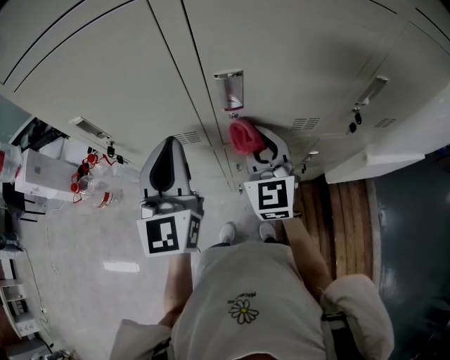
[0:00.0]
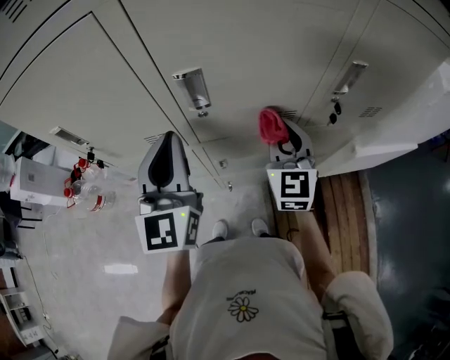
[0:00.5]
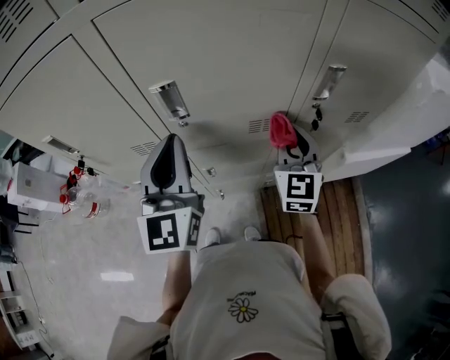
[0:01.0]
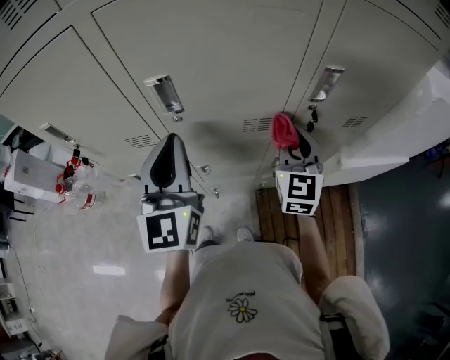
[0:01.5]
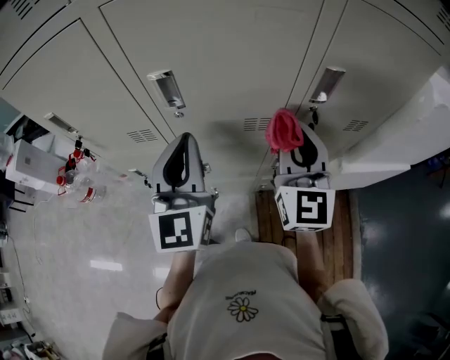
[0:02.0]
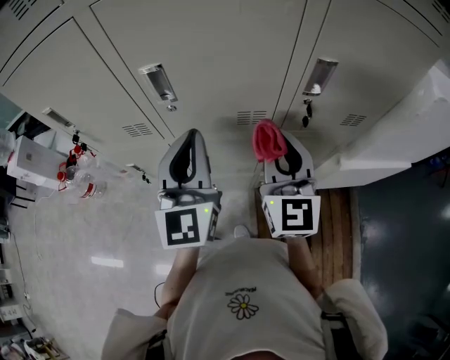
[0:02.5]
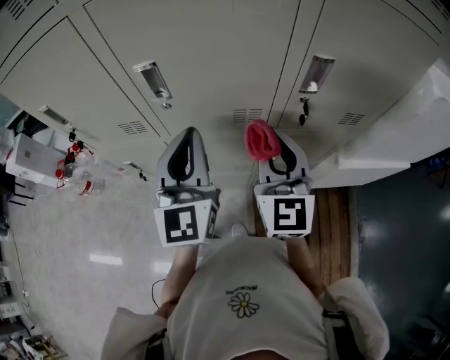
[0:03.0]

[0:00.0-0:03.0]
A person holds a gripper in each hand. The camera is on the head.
0:00.0 to 0:01.5: The left gripper goes approximately 10 cm to the right, while the right gripper moves to the right, about 20 cm.
0:01.5 to 0:03.0: The right gripper heads backward and upward, covering about 10 cm. Meanwhile the left gripper heads to the right, covering some 5 cm.

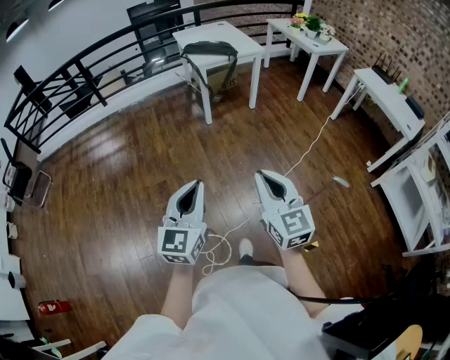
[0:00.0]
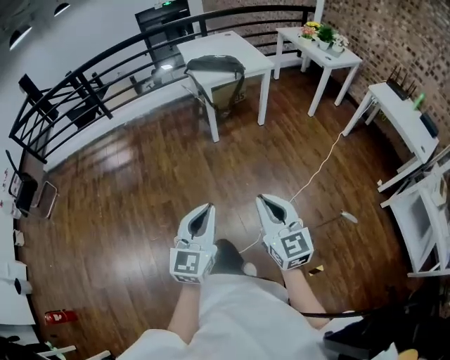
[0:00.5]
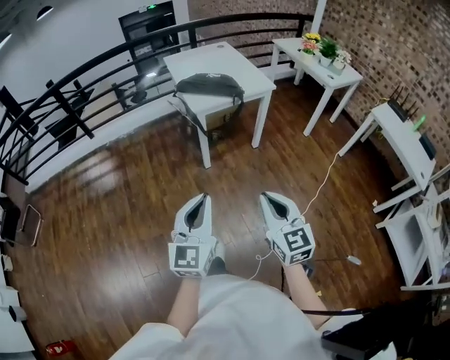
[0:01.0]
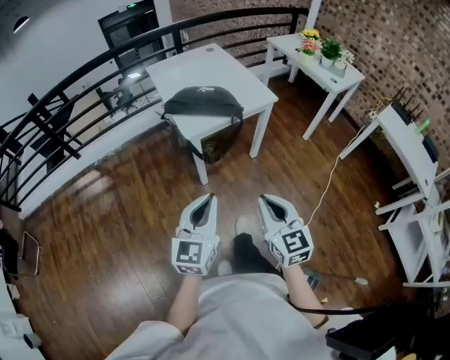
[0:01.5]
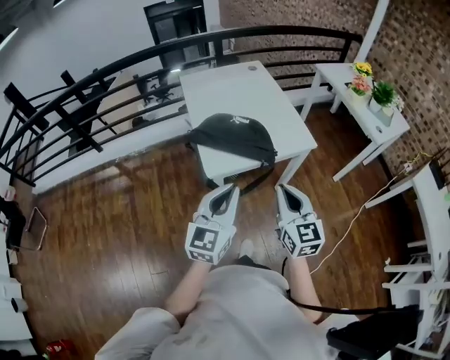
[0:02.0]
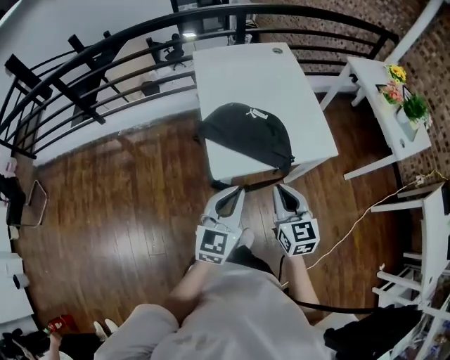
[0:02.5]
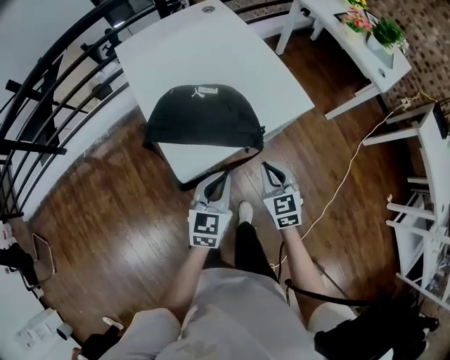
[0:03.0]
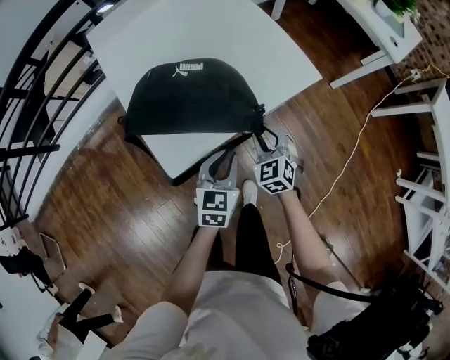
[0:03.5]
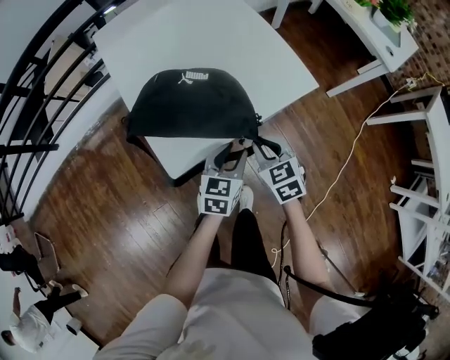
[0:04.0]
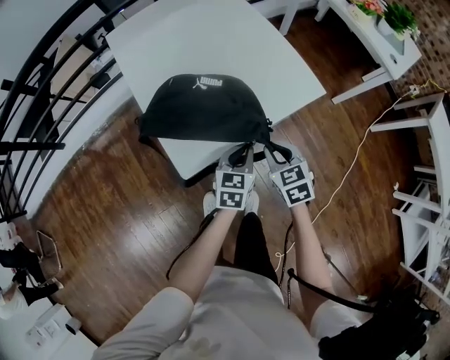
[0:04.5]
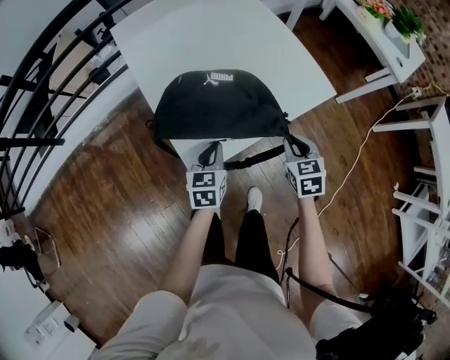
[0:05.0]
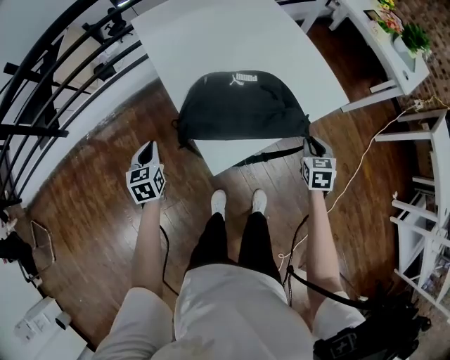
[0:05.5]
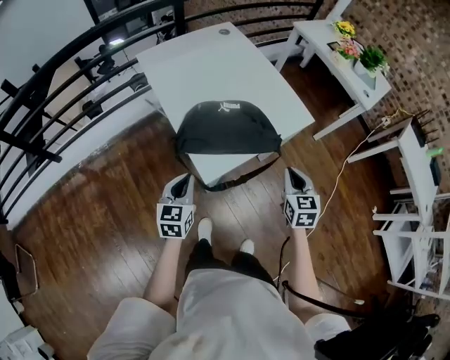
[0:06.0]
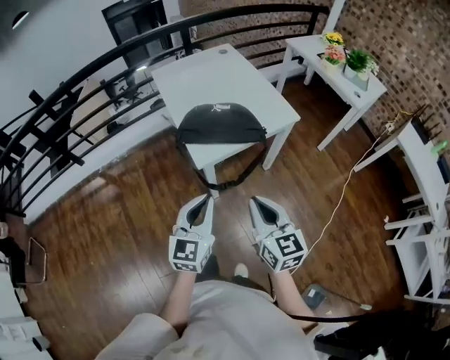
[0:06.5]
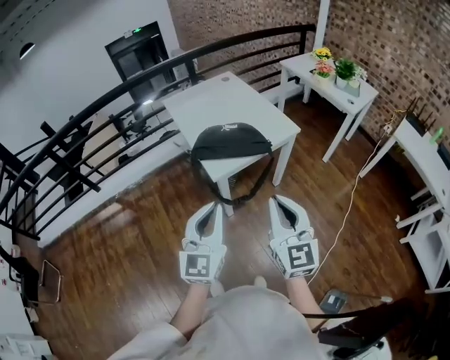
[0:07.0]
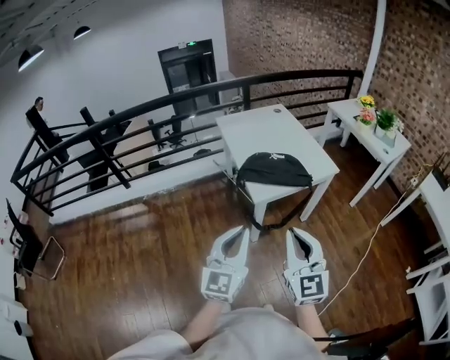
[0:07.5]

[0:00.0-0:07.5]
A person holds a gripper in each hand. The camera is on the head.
0:00.0 to 0:02.0: The two grippers travel together, forward, about 90 cm.
0:02.0 to 0:04.0: The grippers both shift downward and forward by some 35 cm. The right gripper points its fingers about 30 degrees further downward. The left gripper changes its angle by some 30 degrees, and opens.
0:04.0 to 0:05.5: The left gripper moves to the left, some 40 cm, turns by some 30 degrees, and closes up; the right gripper goes approximately 5 cm to the right, and swivels about 30 degrees.
0:05.5 to 0:07.5: The left gripper shifts roughly 60 cm upward and backward, and angles its fingers upward, by about 40 degrees. Meanwhile the right gripper is displaced upward, backward and to the left by roughly 60 cm, and angles its fingers upward, by roughly 50 degrees.

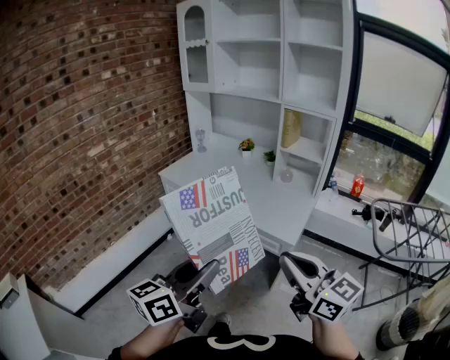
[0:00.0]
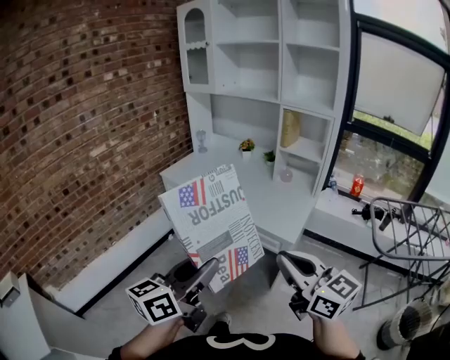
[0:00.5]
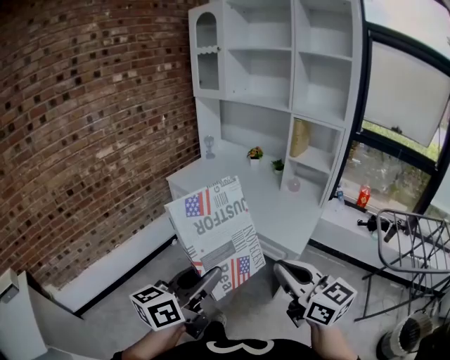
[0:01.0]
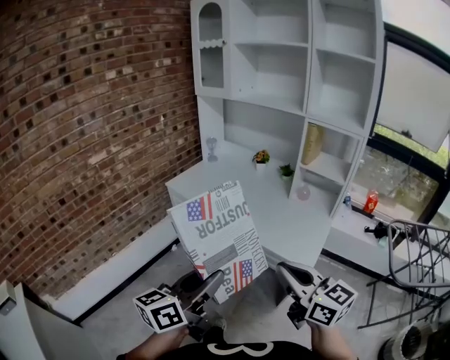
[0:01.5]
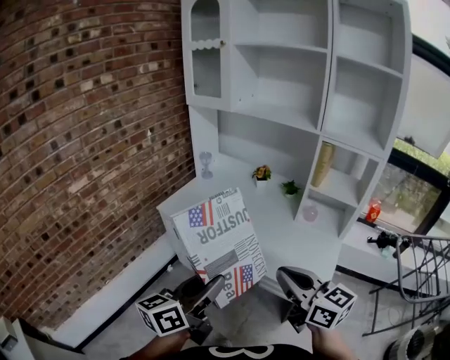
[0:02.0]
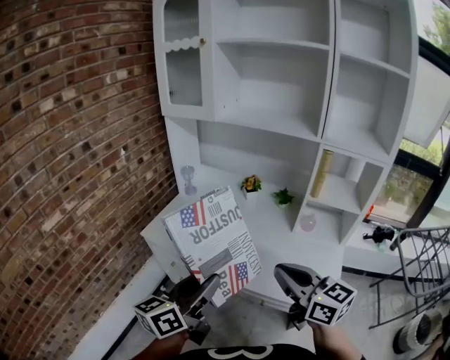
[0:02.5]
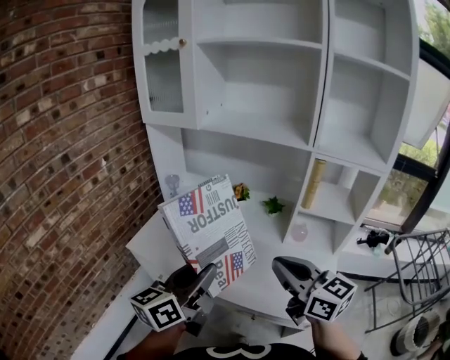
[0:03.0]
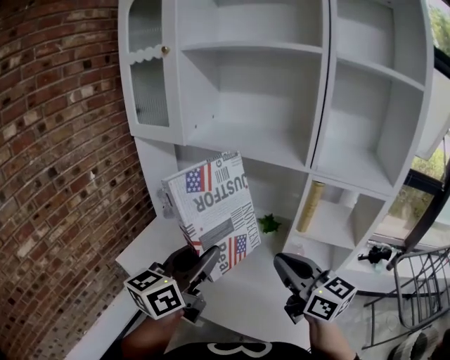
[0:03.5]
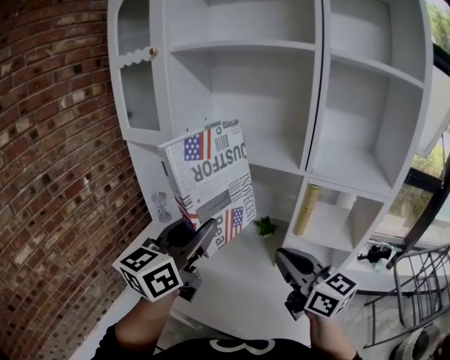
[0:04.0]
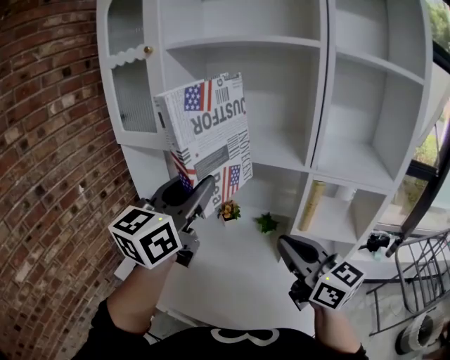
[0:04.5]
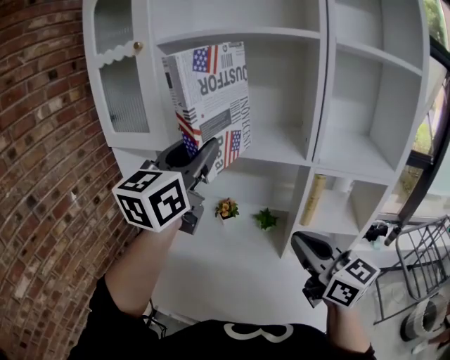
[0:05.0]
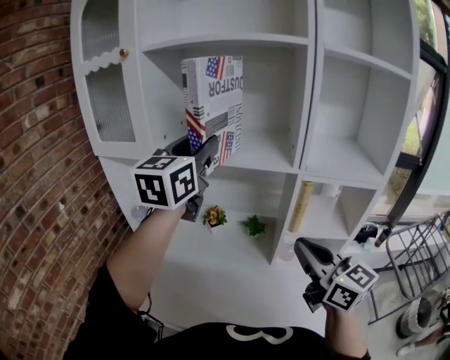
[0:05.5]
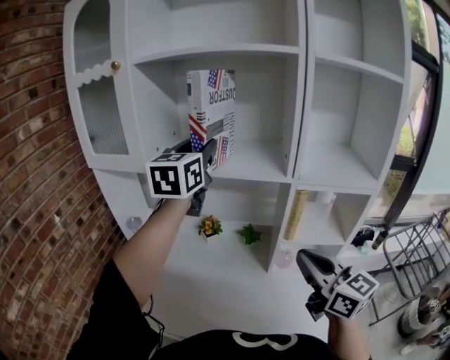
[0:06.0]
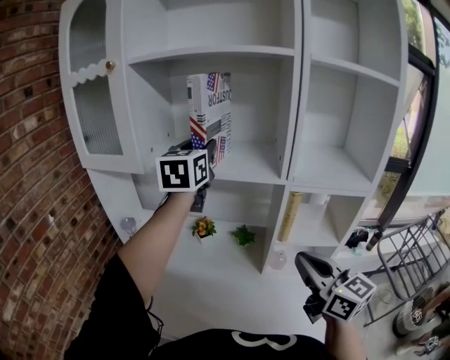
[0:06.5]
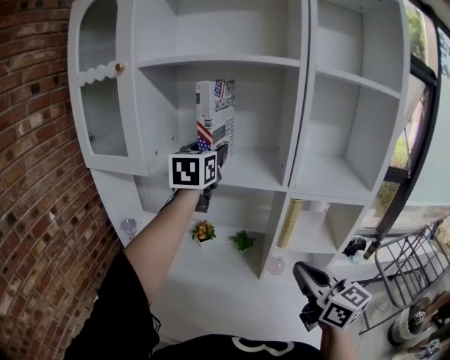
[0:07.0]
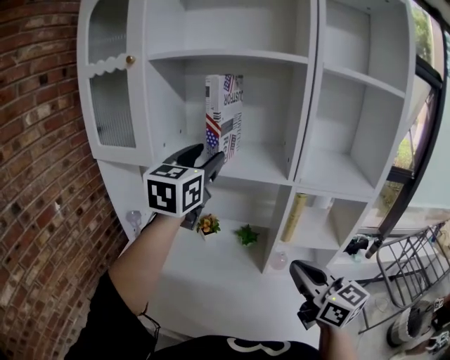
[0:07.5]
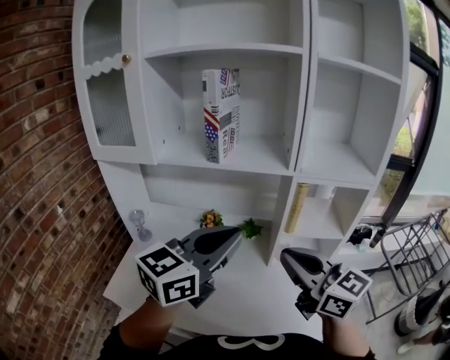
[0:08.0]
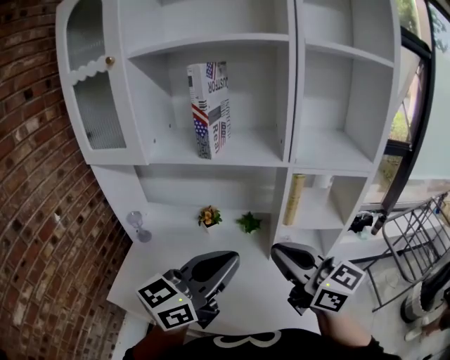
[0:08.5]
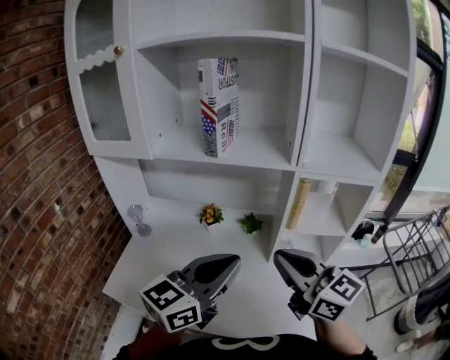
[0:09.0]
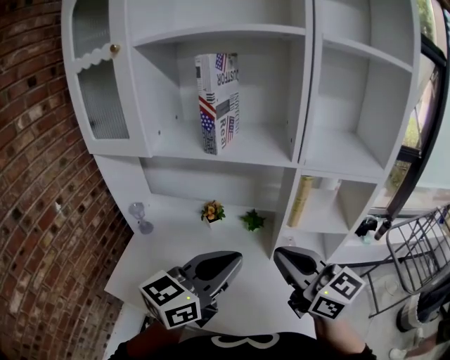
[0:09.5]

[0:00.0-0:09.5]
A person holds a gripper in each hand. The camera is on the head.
0:00.0 to 0:02.0: Both grippers move forward, some 25 cm.
0:02.0 to 0:04.0: The grippers both shift forward by some 35 cm. The left gripper swivels roughly 20 degrees.
0:04.0 to 0:05.5: The left gripper travels forward and upward by approximately 20 cm.
0:05.5 to 0:07.5: The left gripper reaches some 10 cm forward, then returns.
0:07.5 to 0:09.5: The left gripper goes some 25 cm backward and downward, turns by roughly 30 degrees, and closes up, while the right gripper goes about 5 cm to the left.

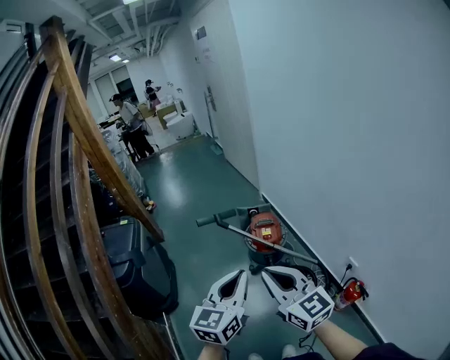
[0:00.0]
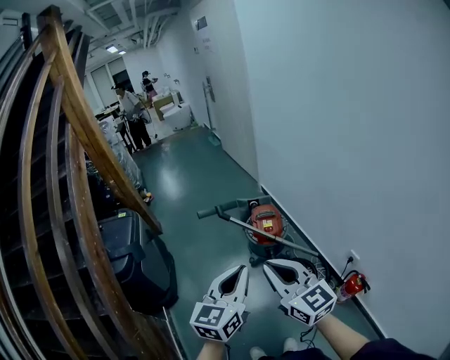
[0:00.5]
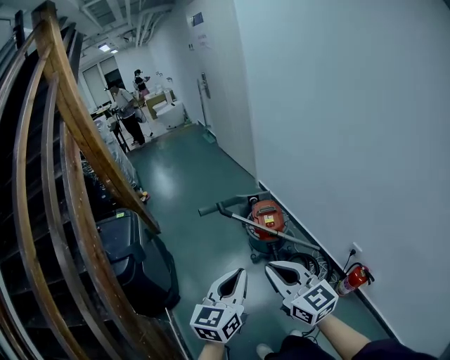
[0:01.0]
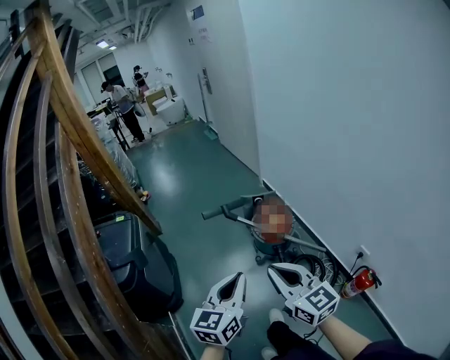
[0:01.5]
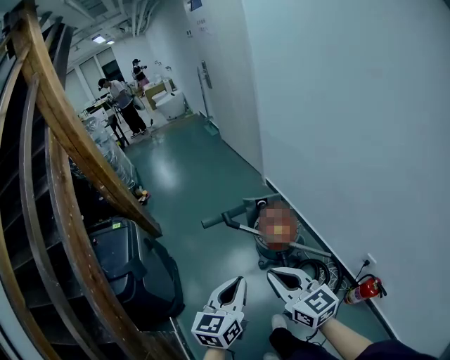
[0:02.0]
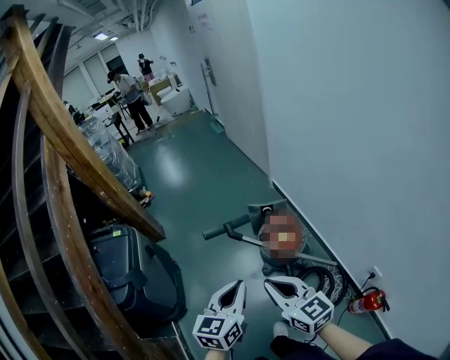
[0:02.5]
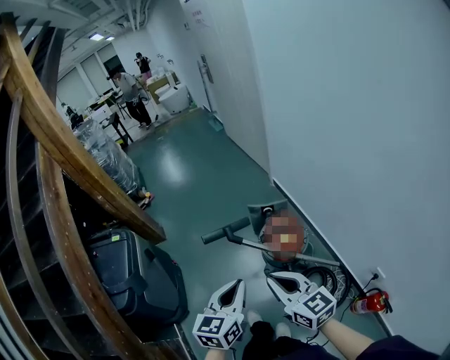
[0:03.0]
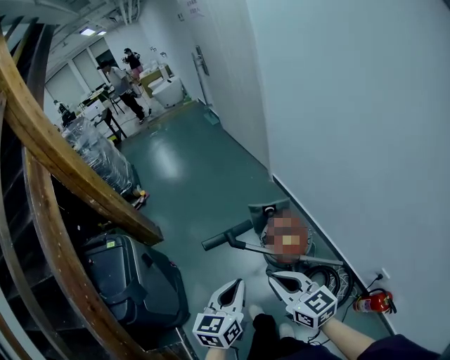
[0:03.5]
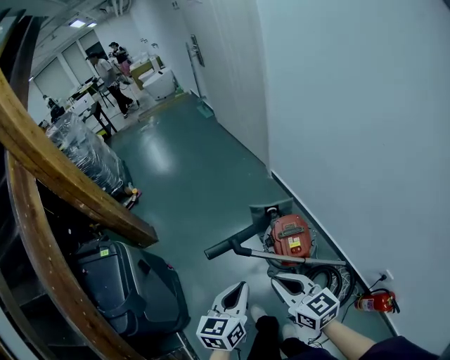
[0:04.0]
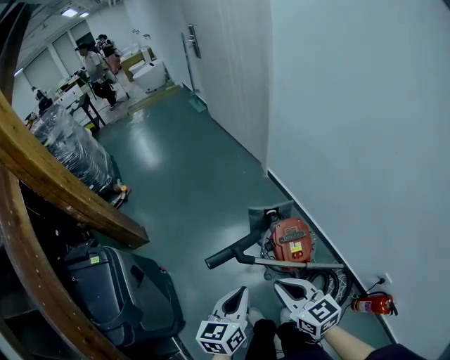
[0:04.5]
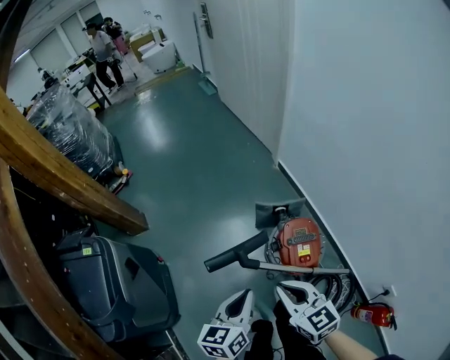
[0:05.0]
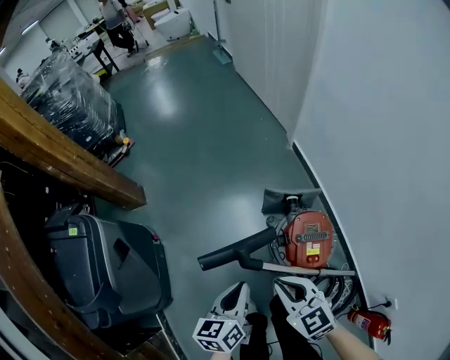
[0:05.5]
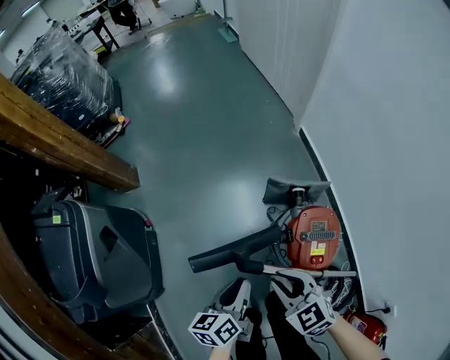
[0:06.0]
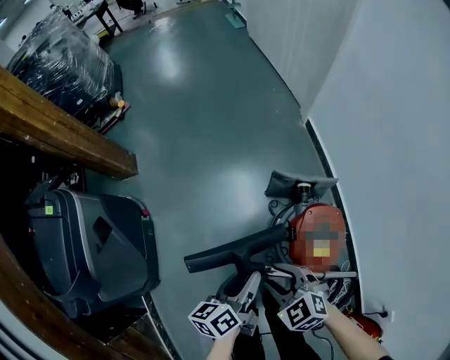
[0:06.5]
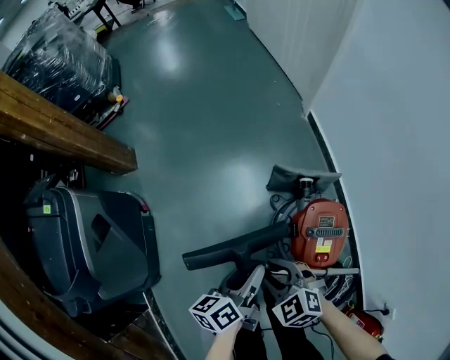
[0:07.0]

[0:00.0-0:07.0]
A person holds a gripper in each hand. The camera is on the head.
0:00.0 to 0:02.0: The left gripper shifts approximately 20 cm forward, to the left and downward, while the right gripper goes roughly 20 cm forward, downward and to the left.
0:02.0 to 0:03.5: Both grippers move forward, about 20 cm.
0:03.5 to 0:05.0: The grippers both shift forward and downward by some 20 cm.
0:05.0 to 0:07.0: Both grippers move downward, some 25 cm. The right gripper changes its angle by approximately 40 degrees, and opens up. The left gripper turns by about 30 degrees, and opens up.
